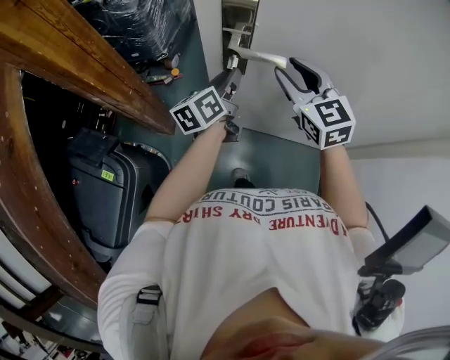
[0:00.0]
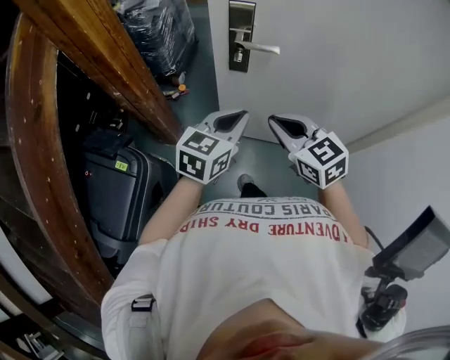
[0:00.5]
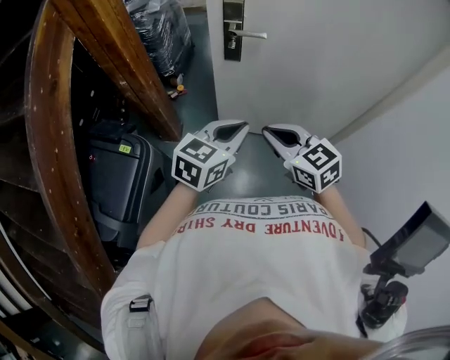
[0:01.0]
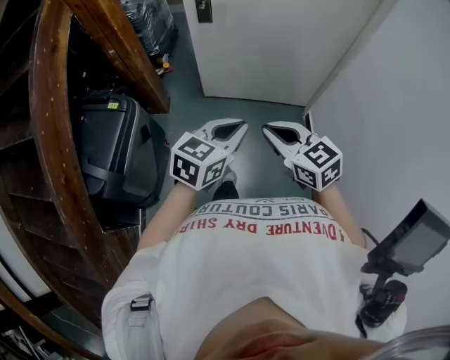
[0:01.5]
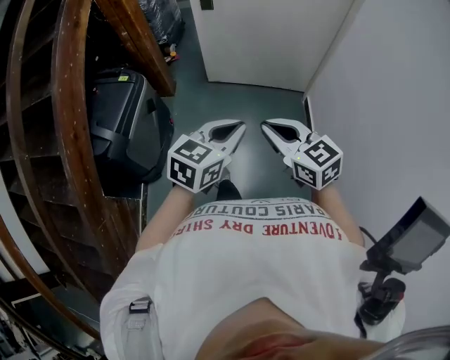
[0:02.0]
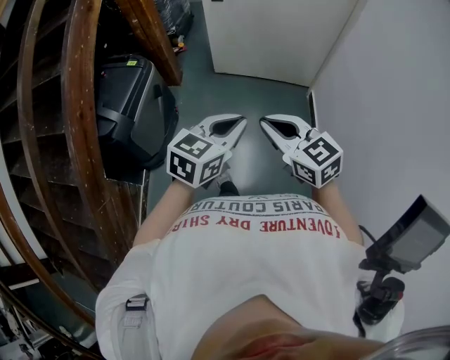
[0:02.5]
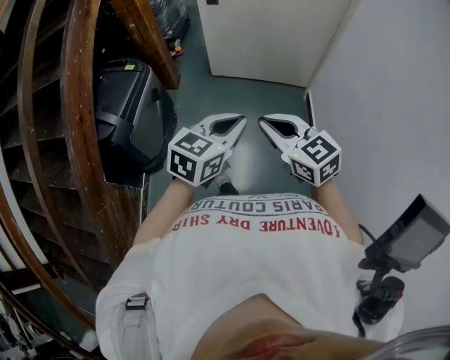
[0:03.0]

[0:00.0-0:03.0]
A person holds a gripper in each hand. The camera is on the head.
0:00.0 to 0:01.5: The pair of grippers is taken backward, about 60 cm. The left gripper rotates around the line of its fingers by some 40 degrees, clockwise from behind, and closes its fingers, while the right gripper closes.
0:01.5 to 0:03.0: Both grippers travel together backward, approximately 25 cm.

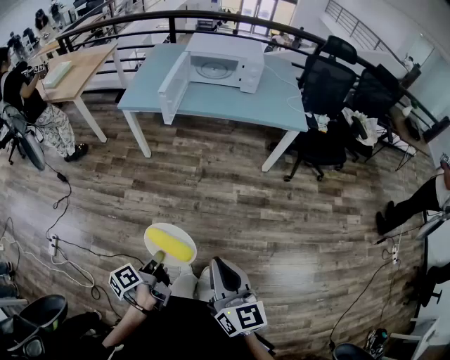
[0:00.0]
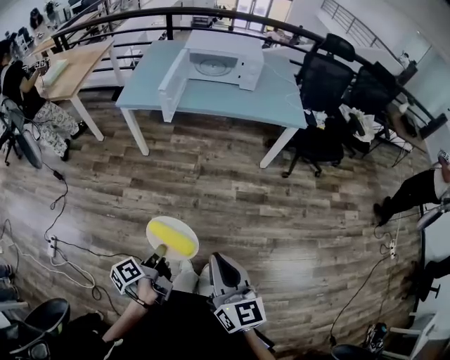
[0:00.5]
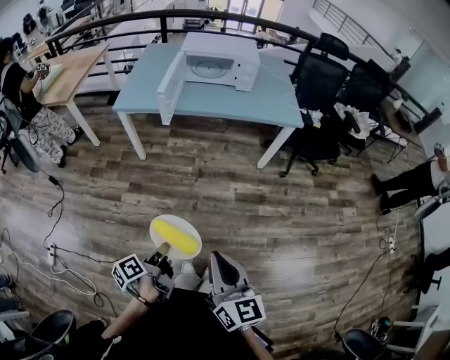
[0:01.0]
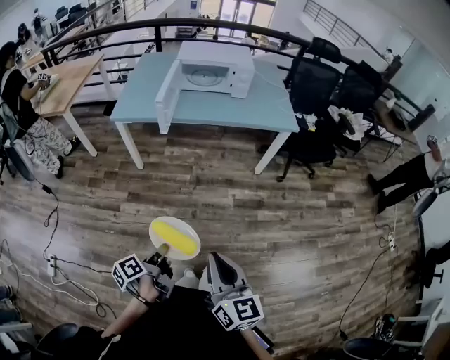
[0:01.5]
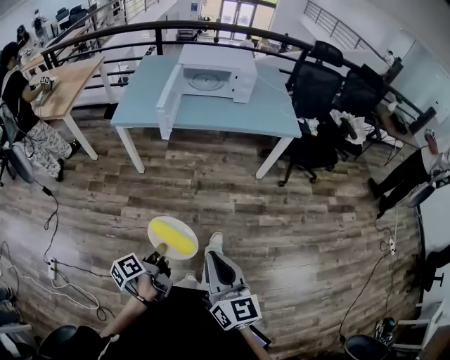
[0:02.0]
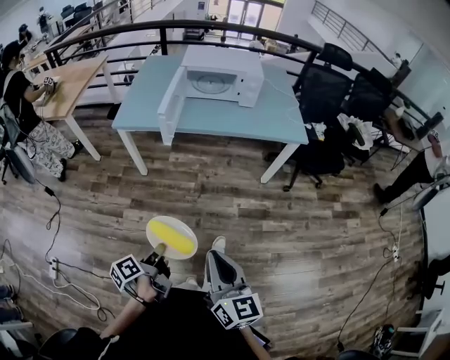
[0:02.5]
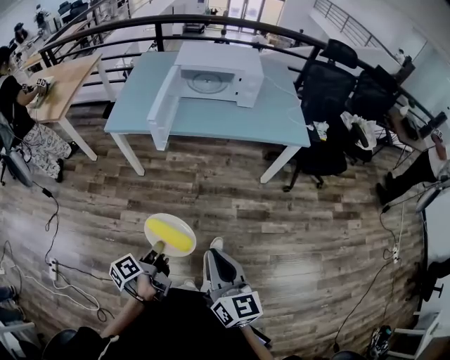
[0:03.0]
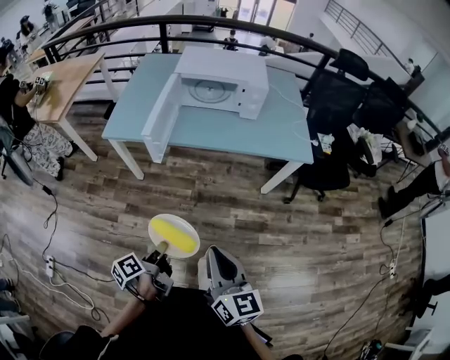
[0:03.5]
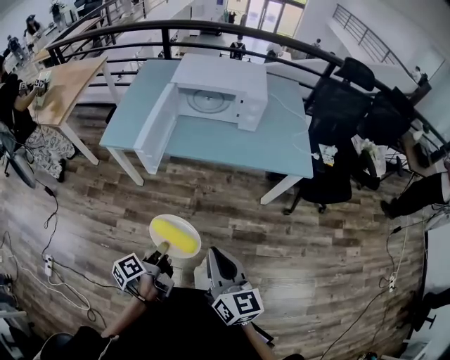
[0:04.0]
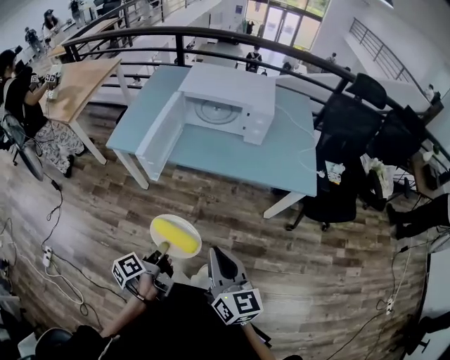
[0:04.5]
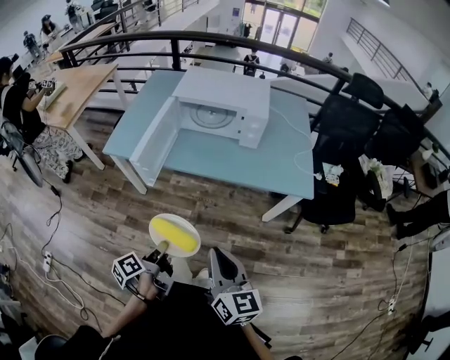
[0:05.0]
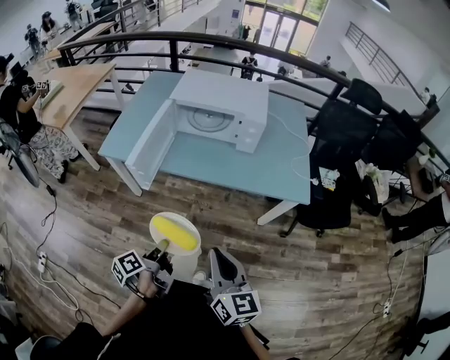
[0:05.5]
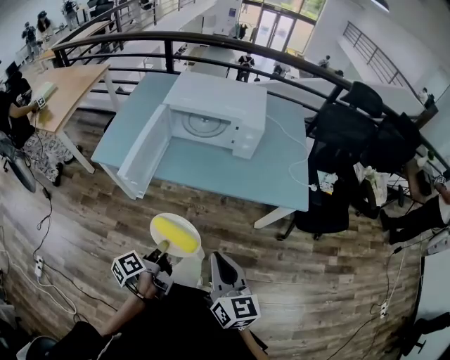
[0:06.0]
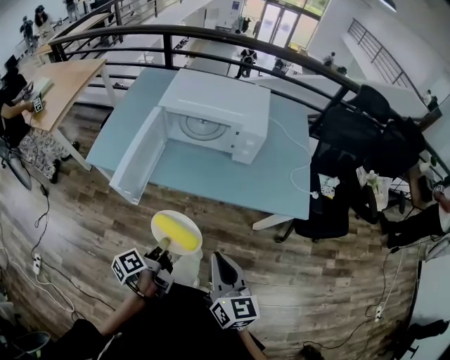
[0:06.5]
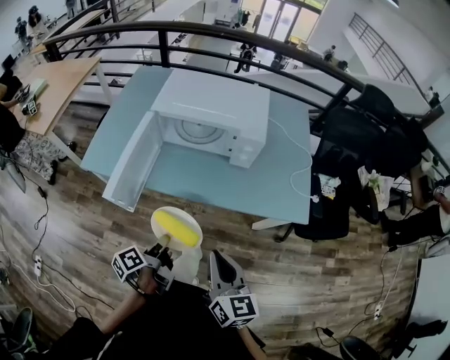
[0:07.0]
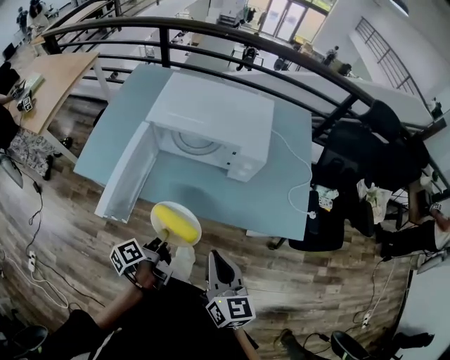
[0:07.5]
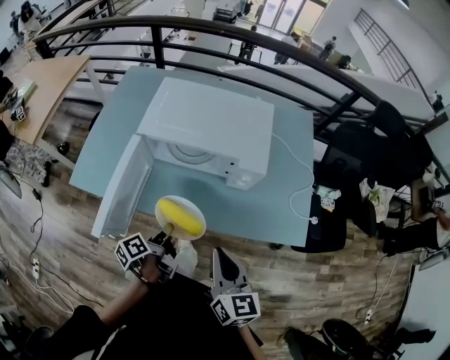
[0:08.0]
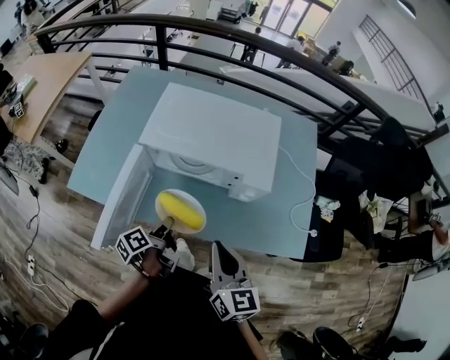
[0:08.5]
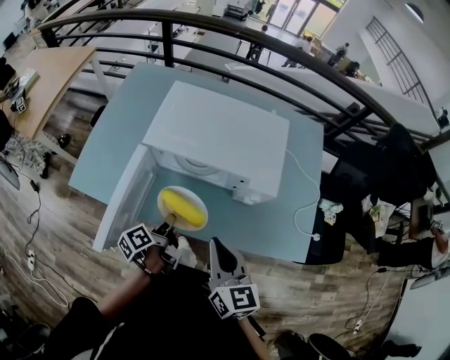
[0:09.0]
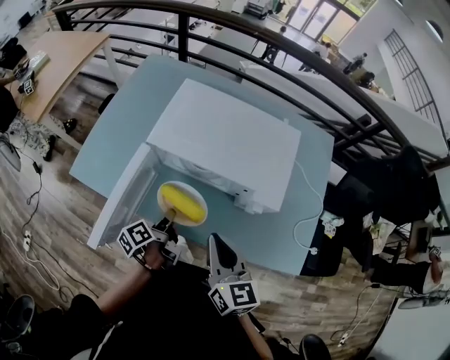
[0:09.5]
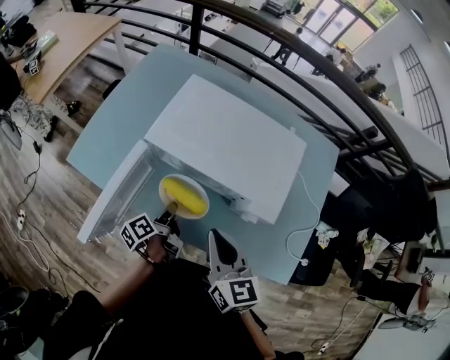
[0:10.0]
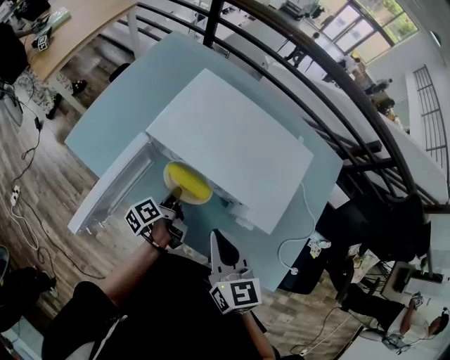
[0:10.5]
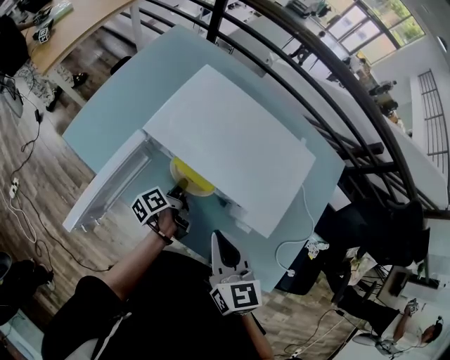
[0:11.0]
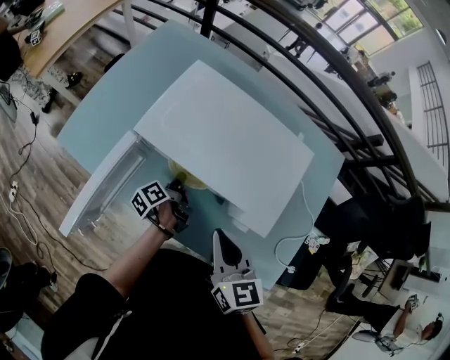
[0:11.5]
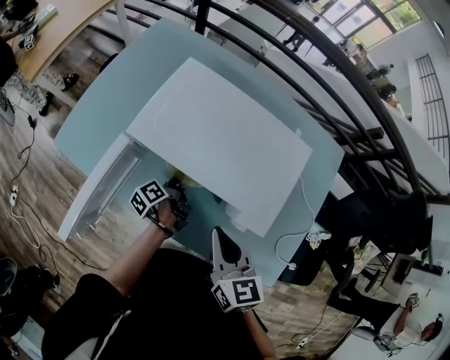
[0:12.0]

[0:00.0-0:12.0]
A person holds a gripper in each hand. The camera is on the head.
0:00.0 to 0:02.0: The right gripper shifts by approximately 10 cm.
0:02.0 to 0:04.0: The right gripper shifts by roughly 30 cm.
0:04.0 to 0:06.0: The right gripper changes place by approximately 15 cm.
0:06.0 to 0:08.0: The right gripper changes place by roughly 25 cm.
0:08.0 to 0:10.0: The right gripper changes place by approximately 15 cm.
0:10.0 to 0:12.0: The right gripper changes place by some 5 cm.

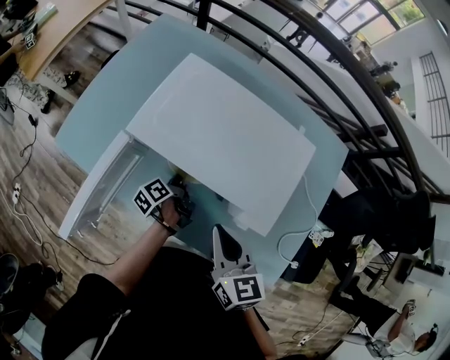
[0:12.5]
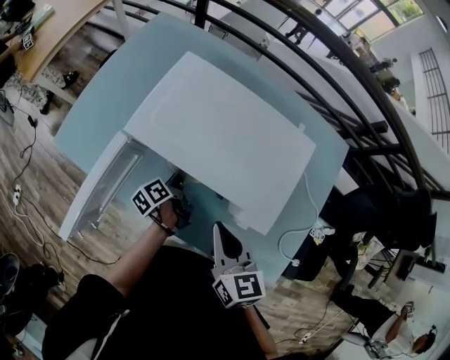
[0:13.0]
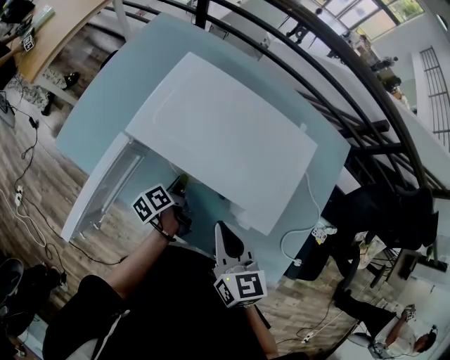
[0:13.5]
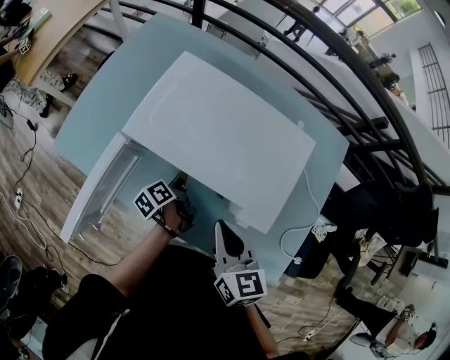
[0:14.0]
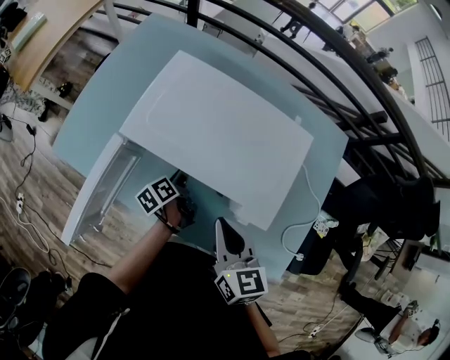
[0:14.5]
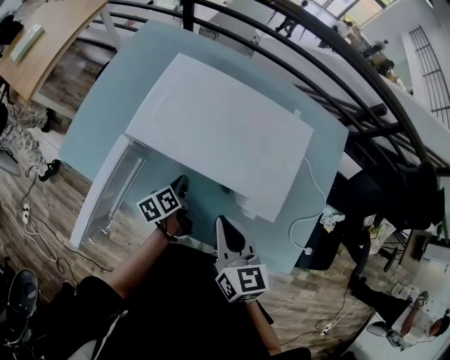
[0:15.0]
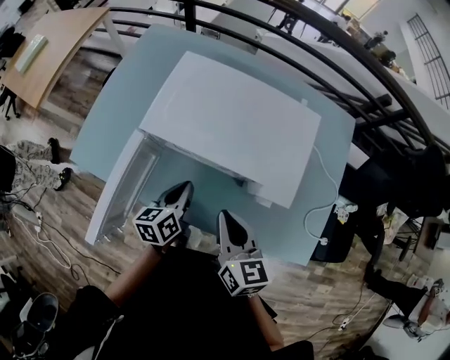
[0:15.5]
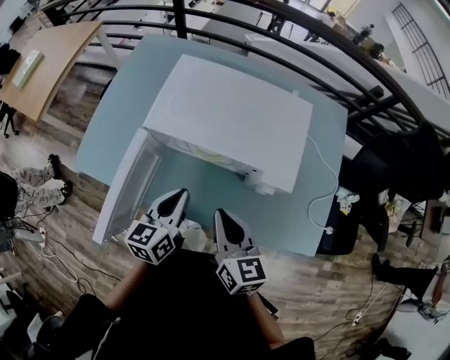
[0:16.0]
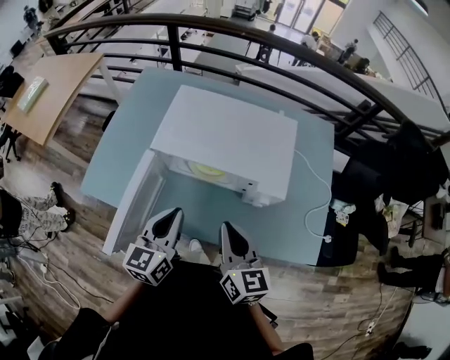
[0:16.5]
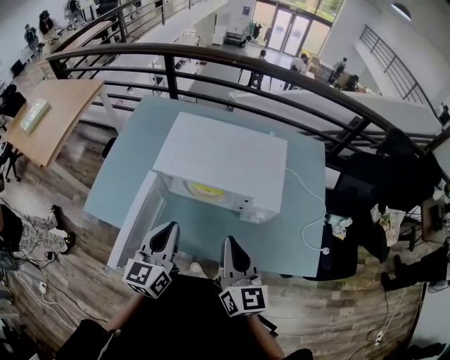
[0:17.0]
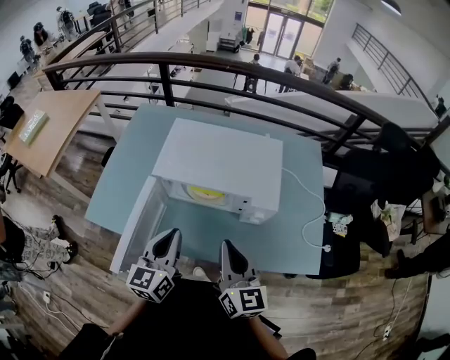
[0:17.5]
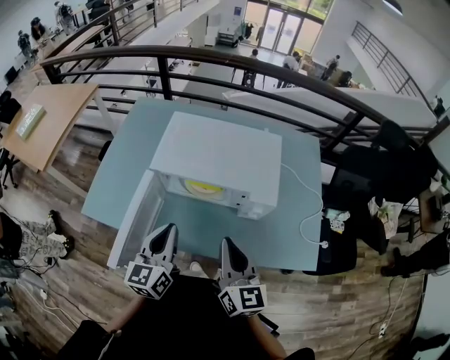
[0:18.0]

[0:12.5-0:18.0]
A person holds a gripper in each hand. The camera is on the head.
0:14.5 to 0:16.0: The right gripper ends up approximately 10 cm from where it was.
0:16.0 to 0:18.0: The right gripper heads upward, covering some 10 cm, and rotates approximately 20 degrees.

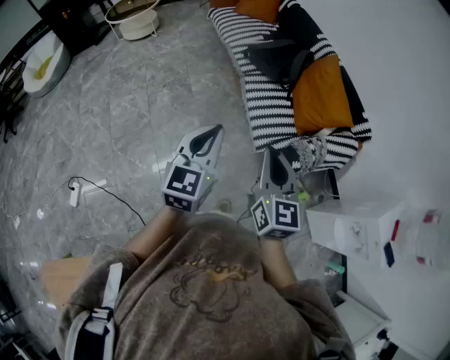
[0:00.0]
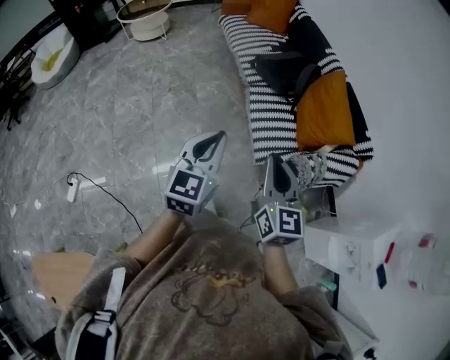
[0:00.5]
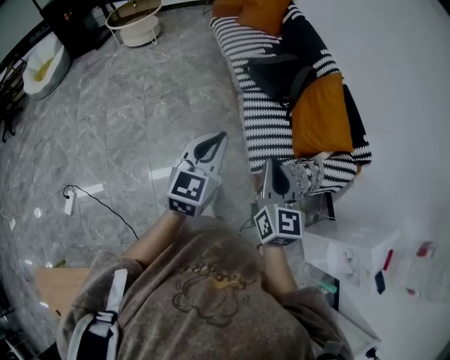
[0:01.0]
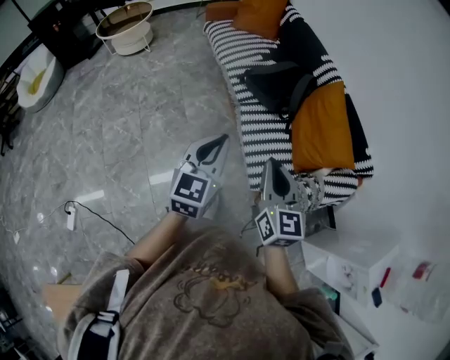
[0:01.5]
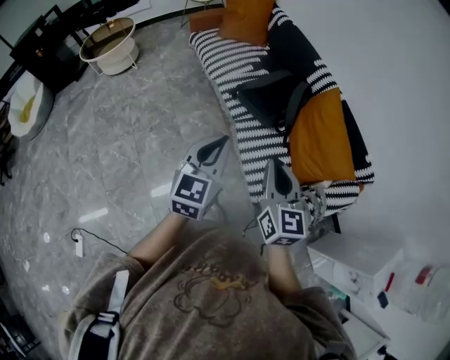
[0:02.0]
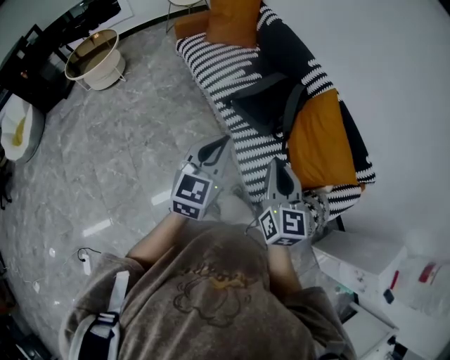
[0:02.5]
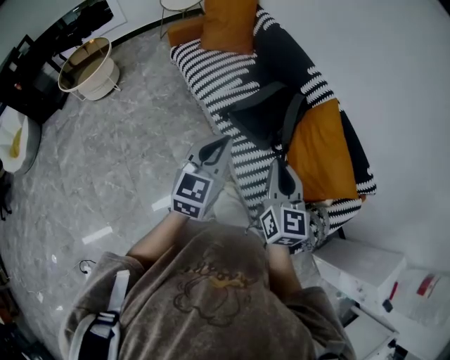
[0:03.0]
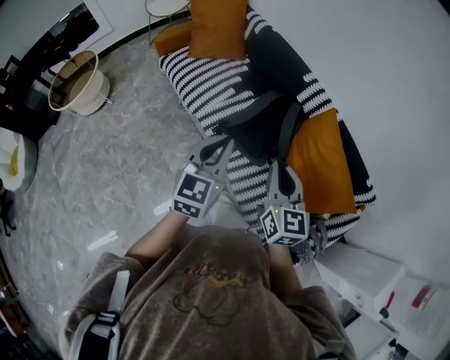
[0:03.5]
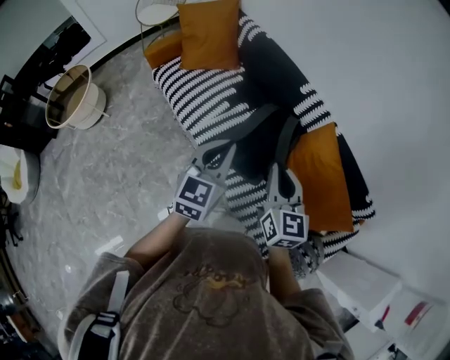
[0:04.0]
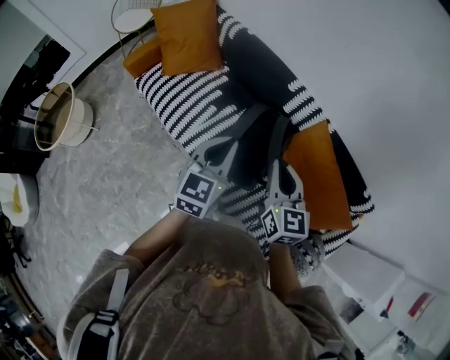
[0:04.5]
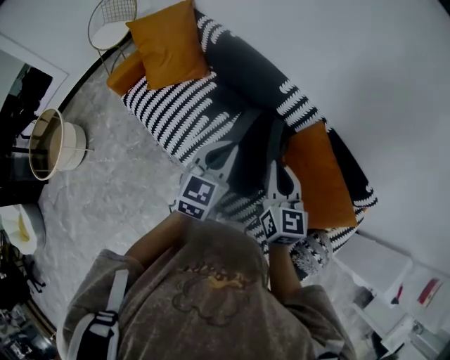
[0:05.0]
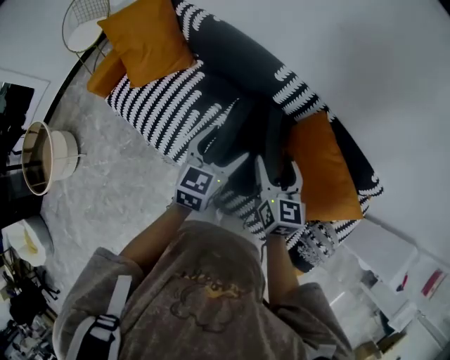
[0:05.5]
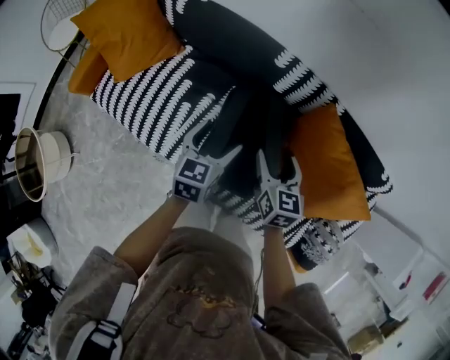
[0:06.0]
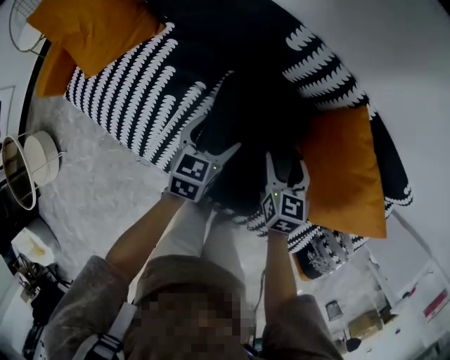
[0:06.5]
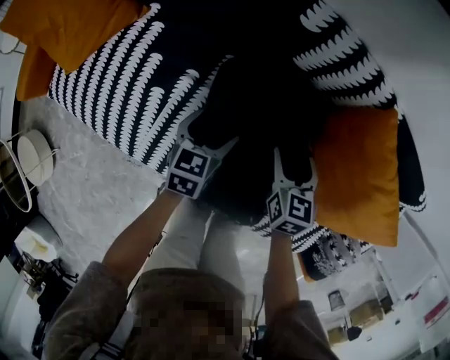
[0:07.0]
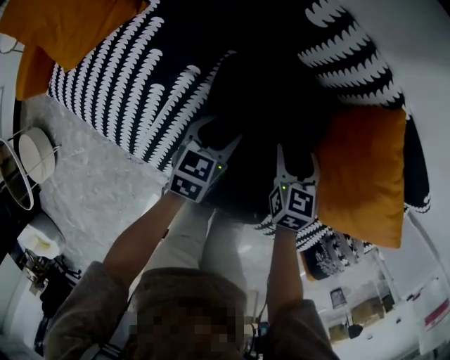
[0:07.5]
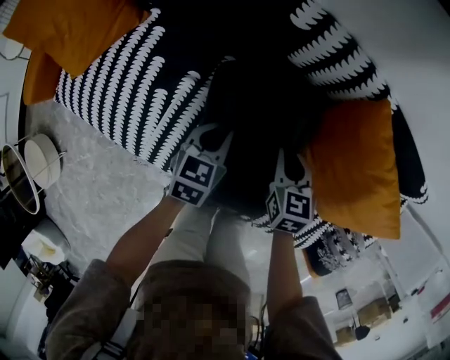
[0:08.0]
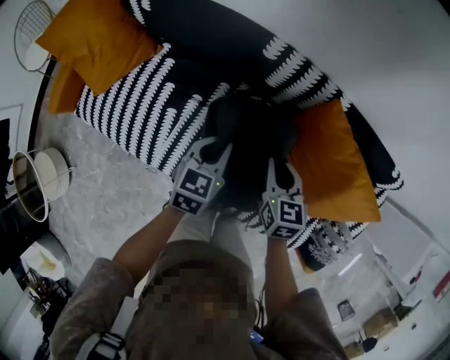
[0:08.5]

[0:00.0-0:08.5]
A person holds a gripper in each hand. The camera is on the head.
0:00.0 to 0:02.0: The grippers both shift forward by some 35 cm.
0:02.0 to 0:04.0: Both grippers move forward, roughly 40 cm.
0:04.0 to 0:06.5: The two grippers go roughly 40 cm downward. The left gripper changes its angle by approximately 40 degrees, and opens its fingers, while the right gripper swivels some 40 degrees, and opens up.
0:06.5 to 0:08.5: Both grippers travel together upward, about 10 cm. The left gripper closes. Meanwhile the right gripper closes.
